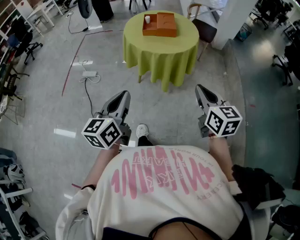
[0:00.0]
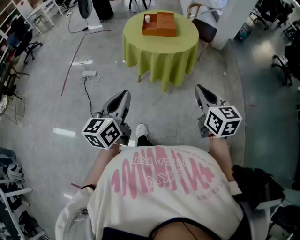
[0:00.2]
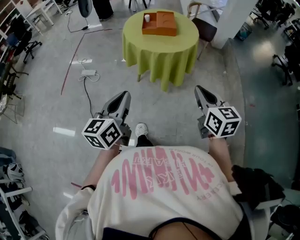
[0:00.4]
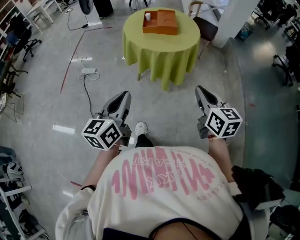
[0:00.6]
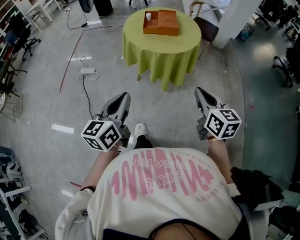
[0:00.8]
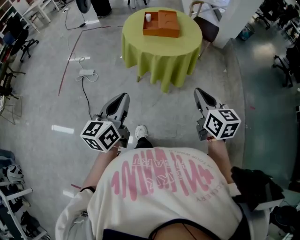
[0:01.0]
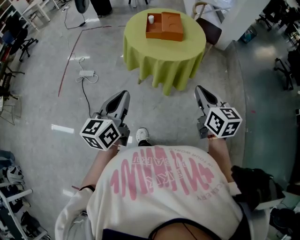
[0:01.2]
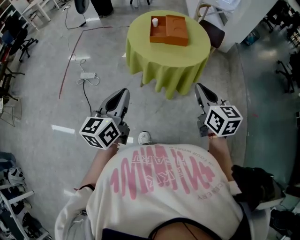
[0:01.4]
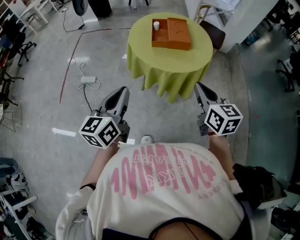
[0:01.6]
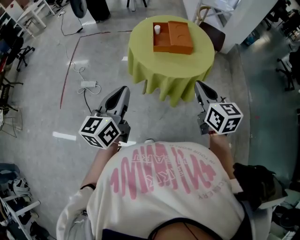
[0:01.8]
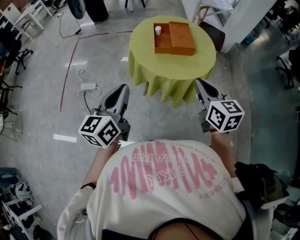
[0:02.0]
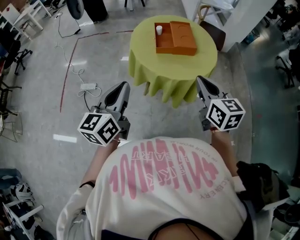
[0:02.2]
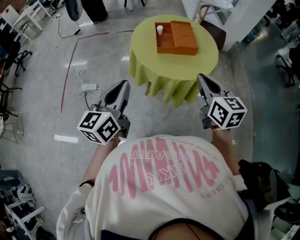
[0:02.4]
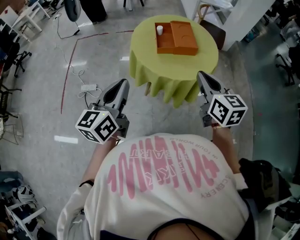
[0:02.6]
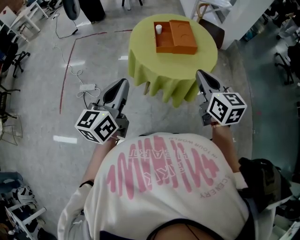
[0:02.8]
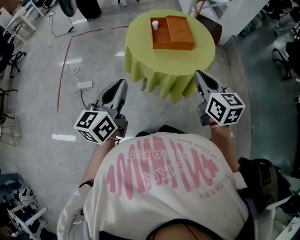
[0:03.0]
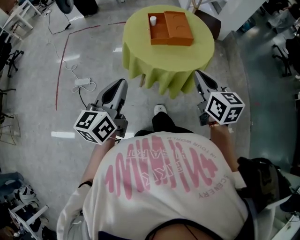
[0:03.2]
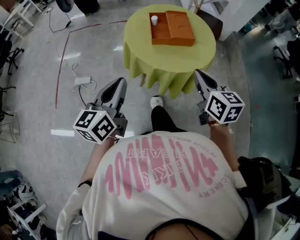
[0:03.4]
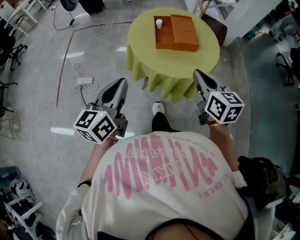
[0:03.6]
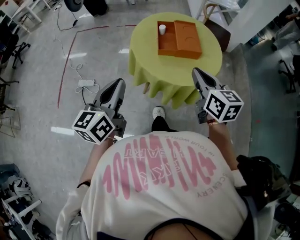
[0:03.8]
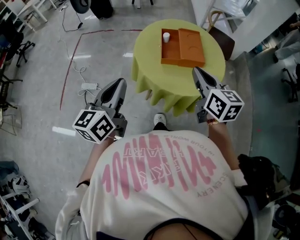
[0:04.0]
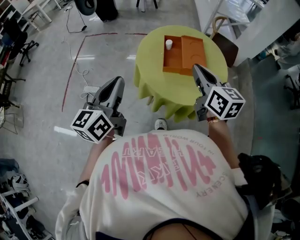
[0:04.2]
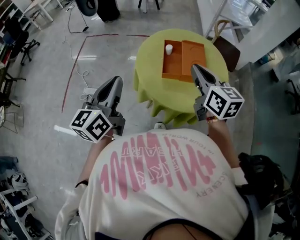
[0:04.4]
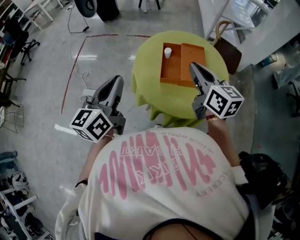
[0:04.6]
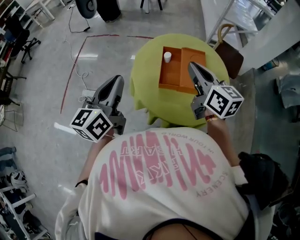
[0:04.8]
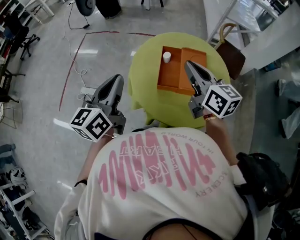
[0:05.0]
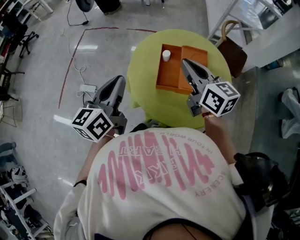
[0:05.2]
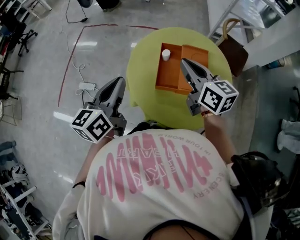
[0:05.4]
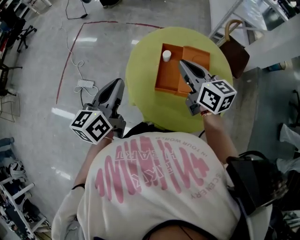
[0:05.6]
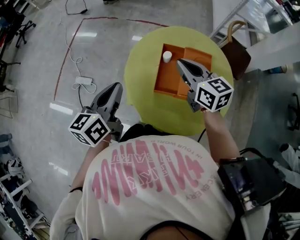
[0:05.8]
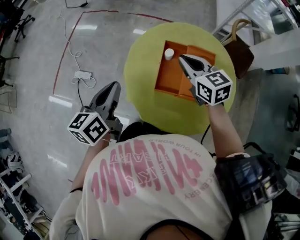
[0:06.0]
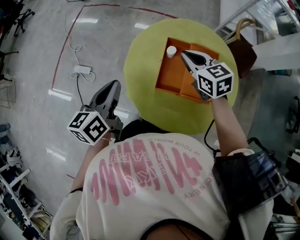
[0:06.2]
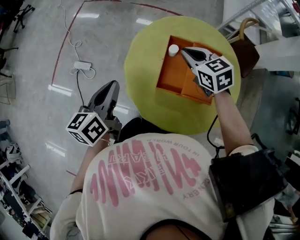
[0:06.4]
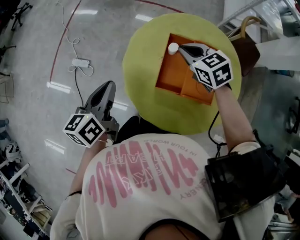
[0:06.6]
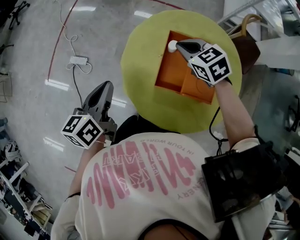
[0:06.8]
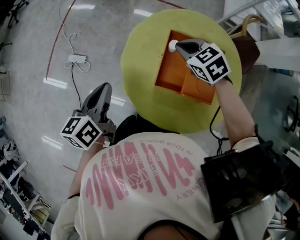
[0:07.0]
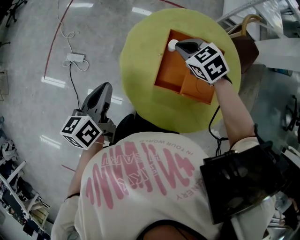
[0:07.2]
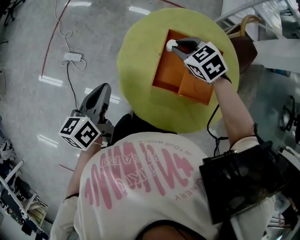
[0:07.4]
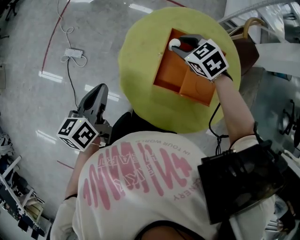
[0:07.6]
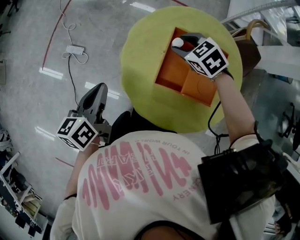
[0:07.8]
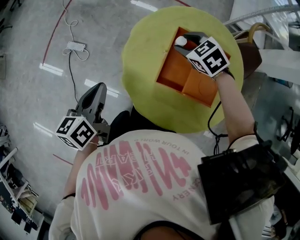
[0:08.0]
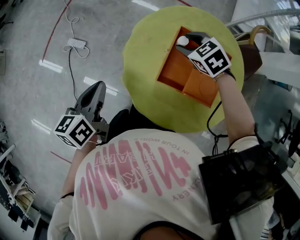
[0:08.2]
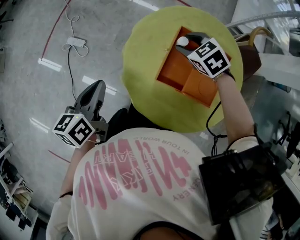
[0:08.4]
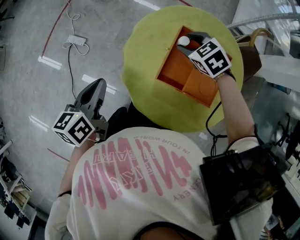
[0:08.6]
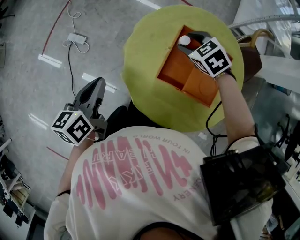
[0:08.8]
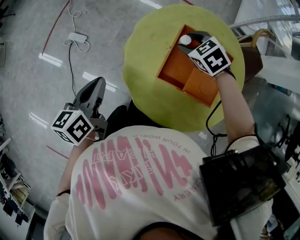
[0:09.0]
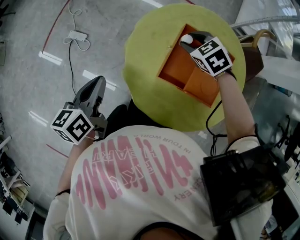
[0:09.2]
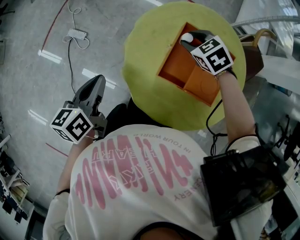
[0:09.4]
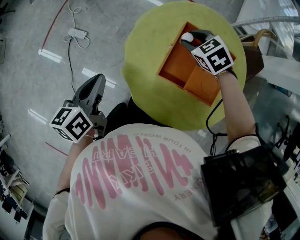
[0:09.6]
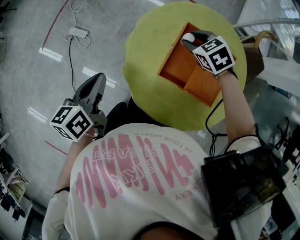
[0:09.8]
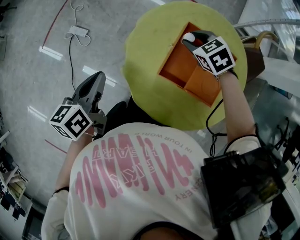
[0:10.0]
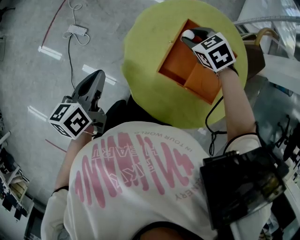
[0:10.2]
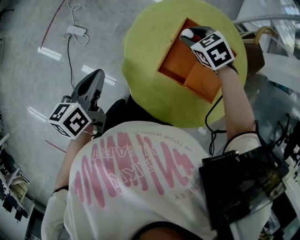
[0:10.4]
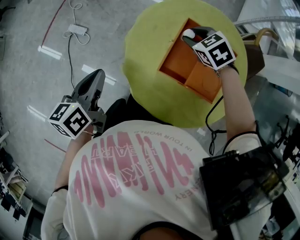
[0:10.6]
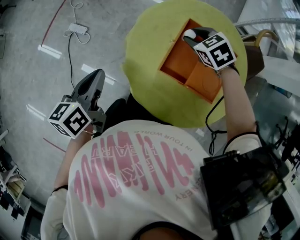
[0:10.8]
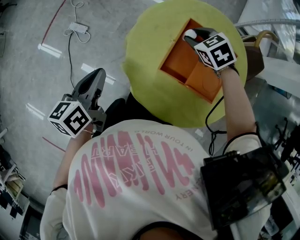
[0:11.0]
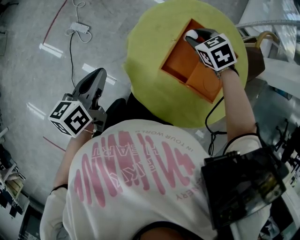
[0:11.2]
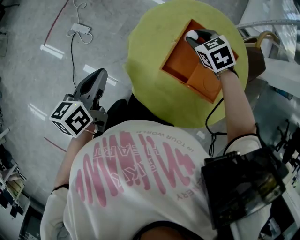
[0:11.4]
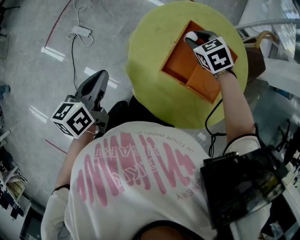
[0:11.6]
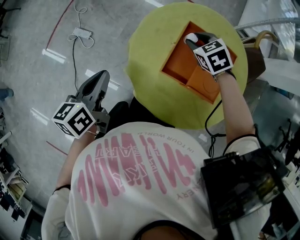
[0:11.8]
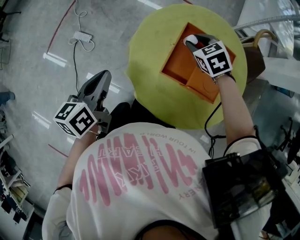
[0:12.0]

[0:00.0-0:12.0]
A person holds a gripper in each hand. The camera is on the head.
0:00.0 to 0:01.6: Both grippers travel together forward and to the left, roughly 20 cm.
0:01.6 to 0:03.0: The left gripper heads forward, covering some 10 cm; the right gripper heads forward and to the left, covering some 10 cm.
0:03.0 to 0:04.4: Both grippers move forward, some 20 cm.
0:04.4 to 0:06.0: The left gripper goes roughly 20 cm forward, downward and to the right. Meanwhile the right gripper goes some 25 cm forward and downward, and turns by about 30 degrees.
0:06.0 to 0:07.6: The right gripper goes some 10 cm downward and forward, swivels roughly 40 degrees, and opens its fingers. The left gripper is displaced downward by about 5 cm.
0:07.6 to 0:09.0: The grippers move only a little.
0:09.0 to 0:10.4: The two grippers keep their place.
0:10.4 to 0:12.0: There are only small adjustments of the grippers.

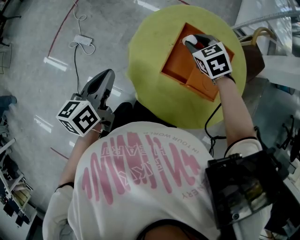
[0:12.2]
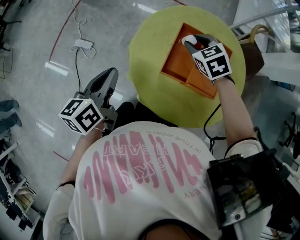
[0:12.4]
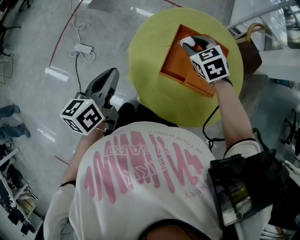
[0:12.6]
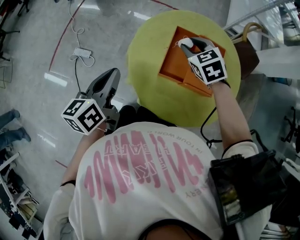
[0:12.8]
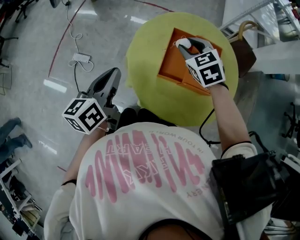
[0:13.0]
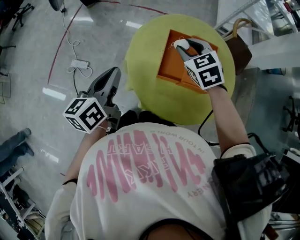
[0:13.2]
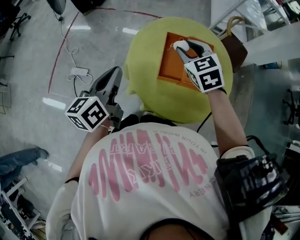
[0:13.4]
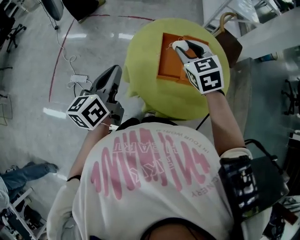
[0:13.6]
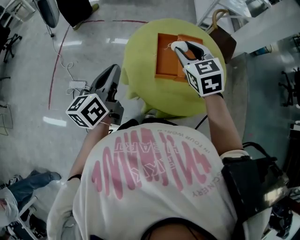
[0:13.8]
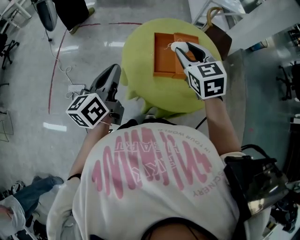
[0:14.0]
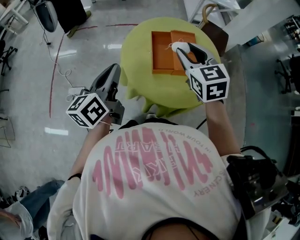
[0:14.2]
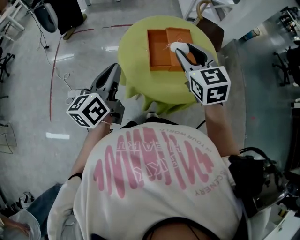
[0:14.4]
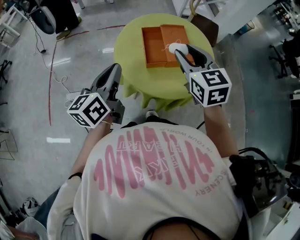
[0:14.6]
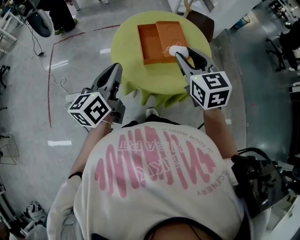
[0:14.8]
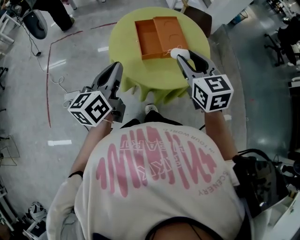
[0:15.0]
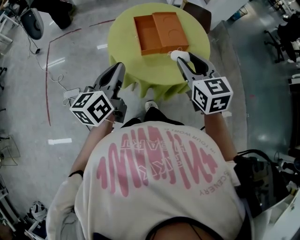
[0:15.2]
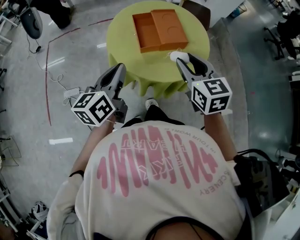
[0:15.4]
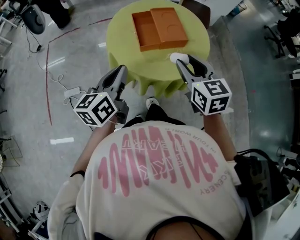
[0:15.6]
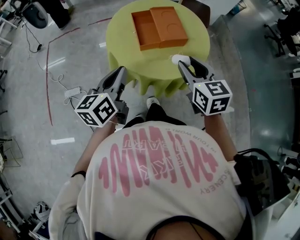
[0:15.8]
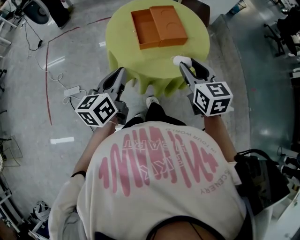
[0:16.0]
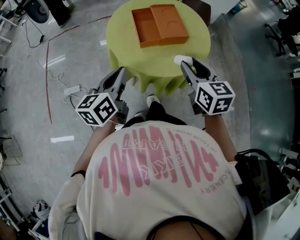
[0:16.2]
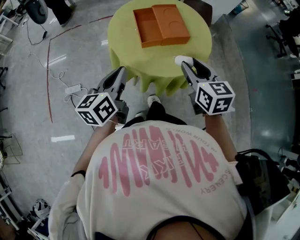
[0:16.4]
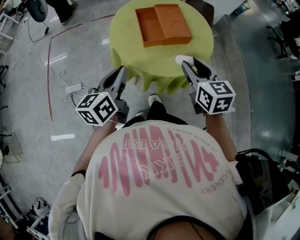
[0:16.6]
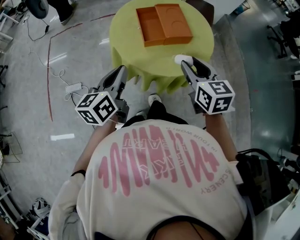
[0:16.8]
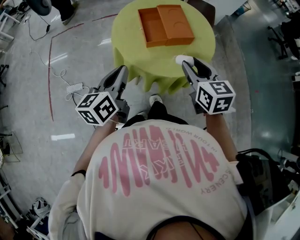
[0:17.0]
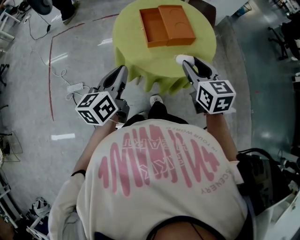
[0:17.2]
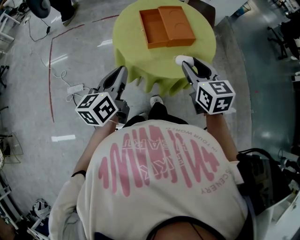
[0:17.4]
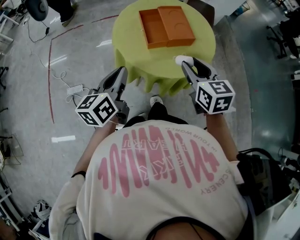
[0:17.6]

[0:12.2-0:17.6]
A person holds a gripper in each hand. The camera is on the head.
0:12.2 to 0:13.6: The left gripper shifts some 10 cm upward. Meanwhile the right gripper moves upward and backward, approximately 15 cm, and swivels roughly 30 degrees.
0:13.6 to 0:15.0: The left gripper moves backward, approximately 5 cm. The right gripper goes some 20 cm backward, and turns by about 30 degrees.
0:15.0 to 0:16.2: The left gripper heads downward, covering approximately 5 cm, while the right gripper goes approximately 10 cm downward and backward.
0:16.2 to 0:17.6: The grippers stay close to where they were, moving slightly.

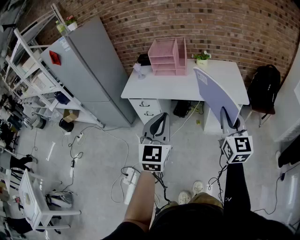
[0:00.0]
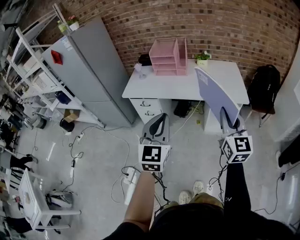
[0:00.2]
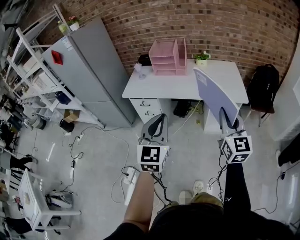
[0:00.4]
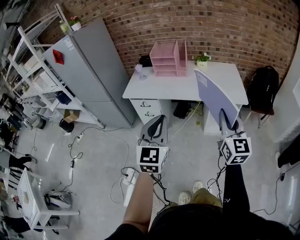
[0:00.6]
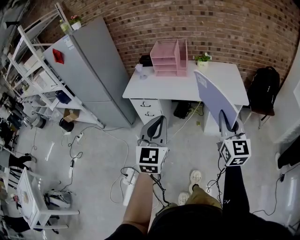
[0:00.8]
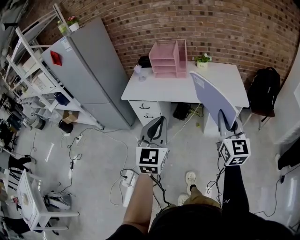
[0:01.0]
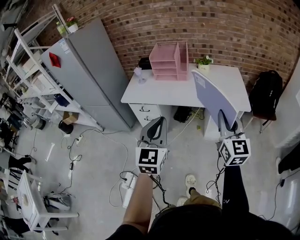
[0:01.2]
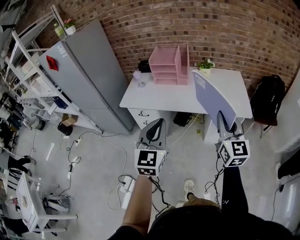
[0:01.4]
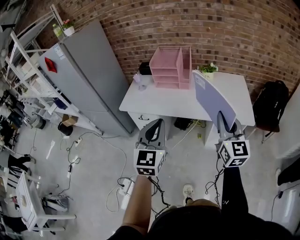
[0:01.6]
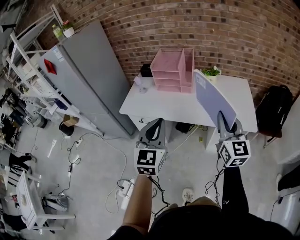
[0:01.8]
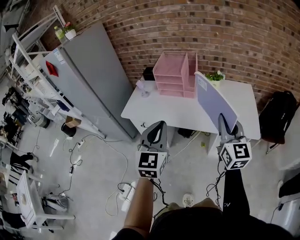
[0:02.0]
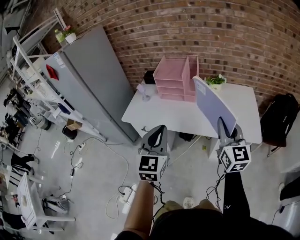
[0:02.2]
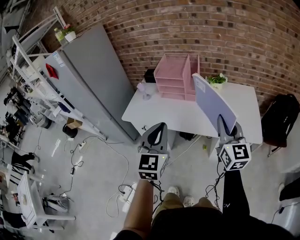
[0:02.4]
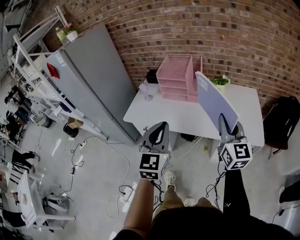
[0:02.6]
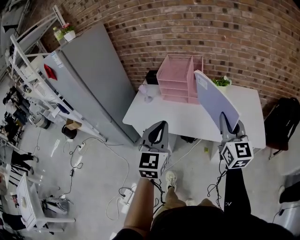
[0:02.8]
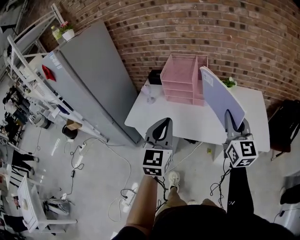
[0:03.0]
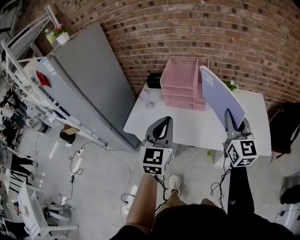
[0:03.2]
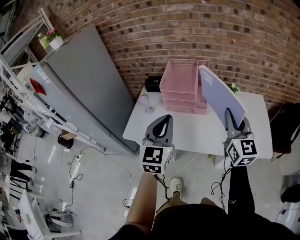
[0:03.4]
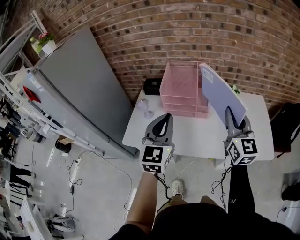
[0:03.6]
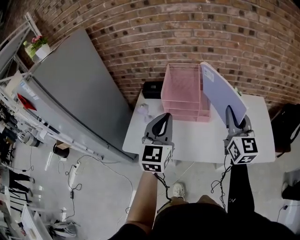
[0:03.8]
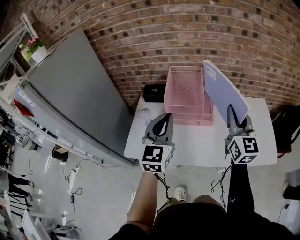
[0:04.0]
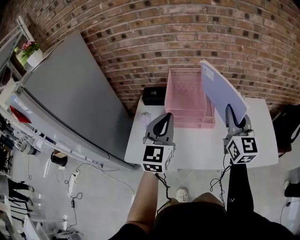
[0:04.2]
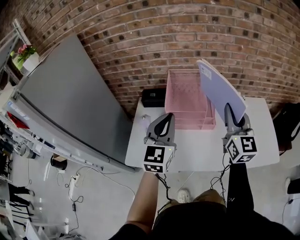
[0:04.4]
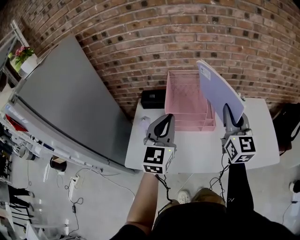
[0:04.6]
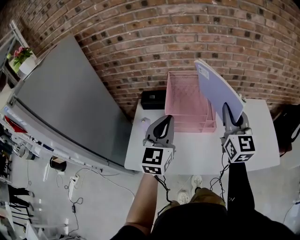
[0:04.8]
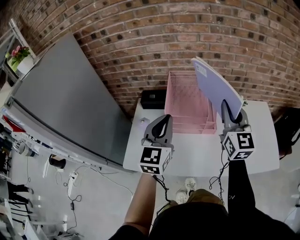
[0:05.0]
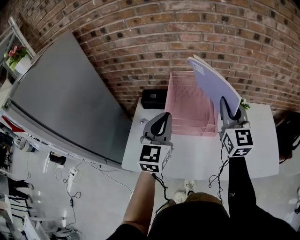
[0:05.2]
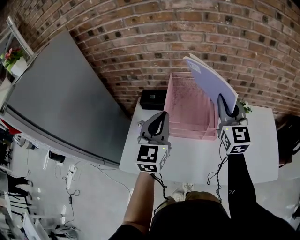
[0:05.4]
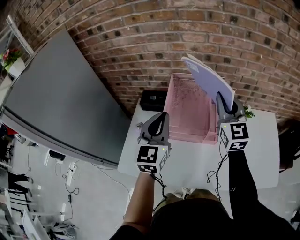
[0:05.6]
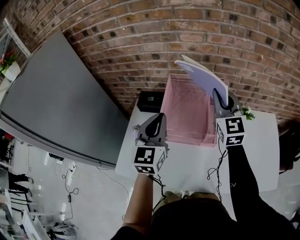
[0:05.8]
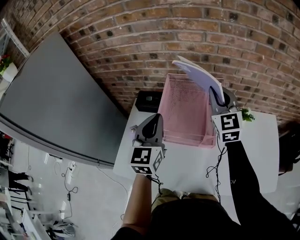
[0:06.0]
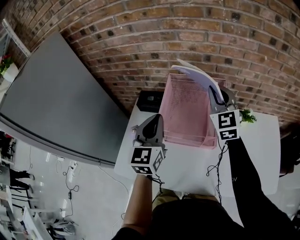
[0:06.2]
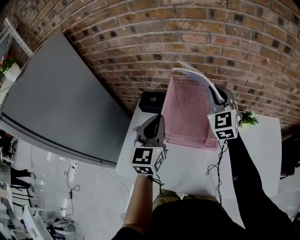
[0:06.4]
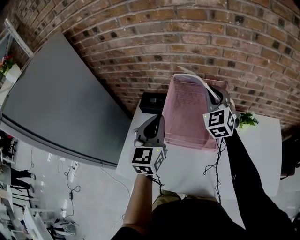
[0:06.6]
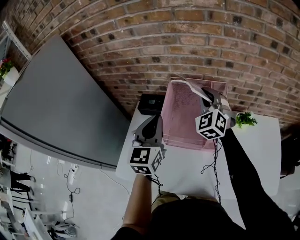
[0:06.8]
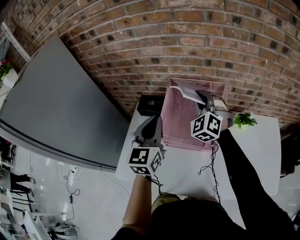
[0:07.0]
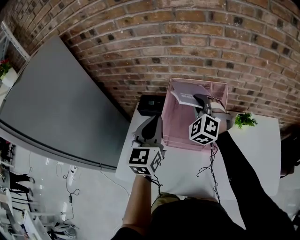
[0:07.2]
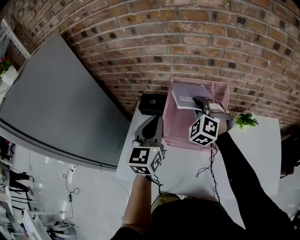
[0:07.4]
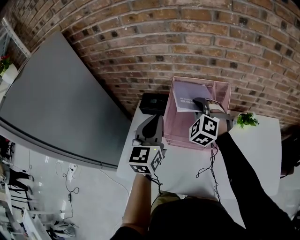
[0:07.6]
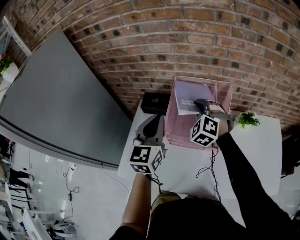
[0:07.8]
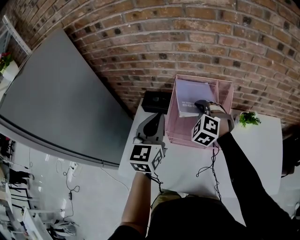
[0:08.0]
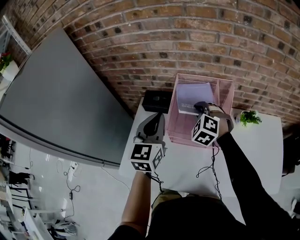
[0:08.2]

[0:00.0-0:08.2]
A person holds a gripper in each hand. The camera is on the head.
0:00.0 to 0:01.6: Both grippers travel together forward, about 15 cm.
0:01.6 to 0:03.2: The two grippers go about 25 cm forward.
0:03.2 to 0:05.0: The two grippers go approximately 25 cm forward and to the left.
0:05.0 to 0:06.6: The right gripper travels forward by some 25 cm, and changes its angle by some 30 degrees. The left gripper heads forward, covering about 10 cm.
0:06.6 to 0:08.2: The right gripper travels downward and to the left by approximately 15 cm, and tilts its fingers approximately 30 degrees downward.
